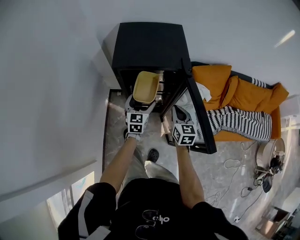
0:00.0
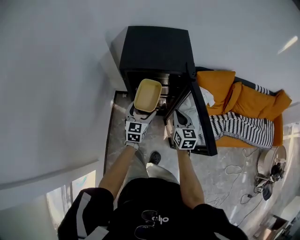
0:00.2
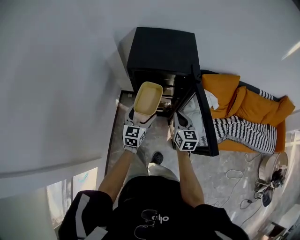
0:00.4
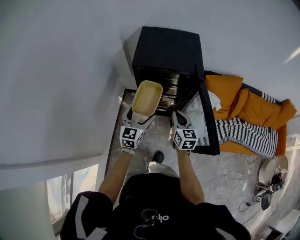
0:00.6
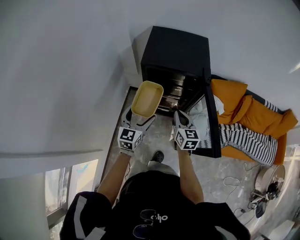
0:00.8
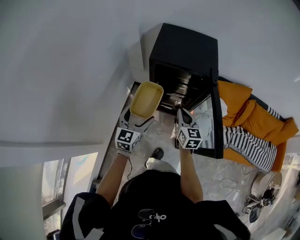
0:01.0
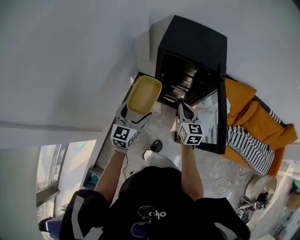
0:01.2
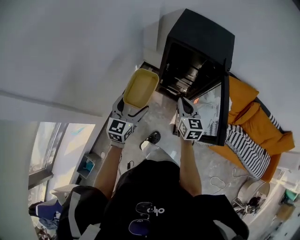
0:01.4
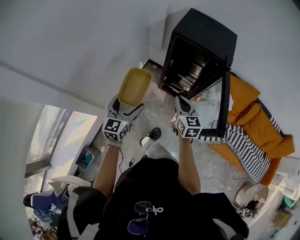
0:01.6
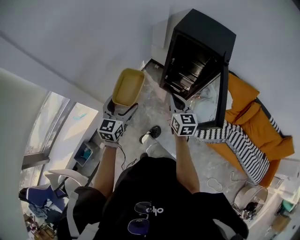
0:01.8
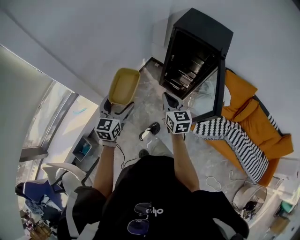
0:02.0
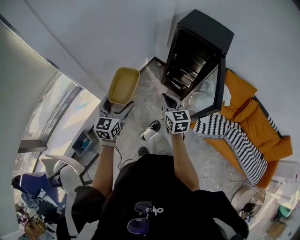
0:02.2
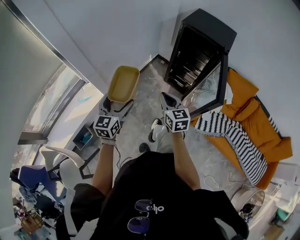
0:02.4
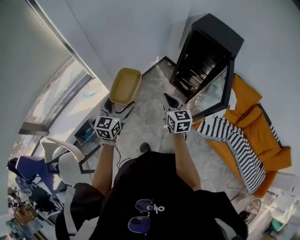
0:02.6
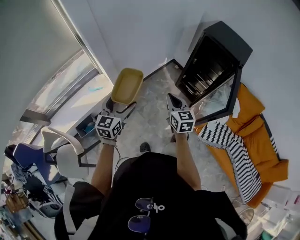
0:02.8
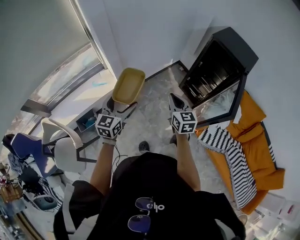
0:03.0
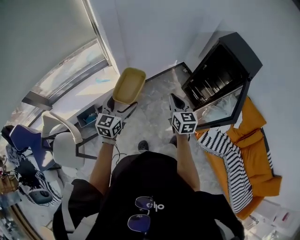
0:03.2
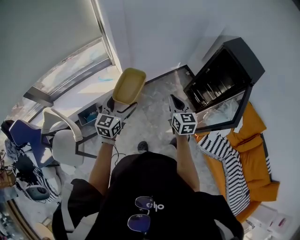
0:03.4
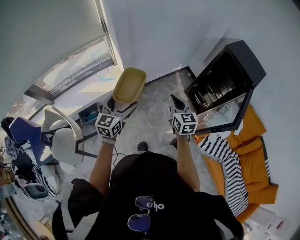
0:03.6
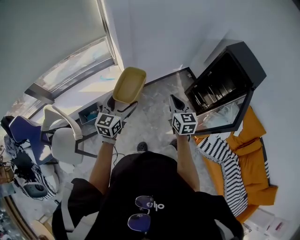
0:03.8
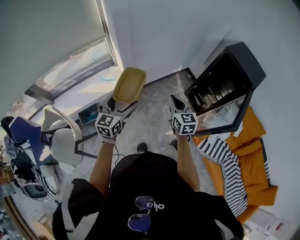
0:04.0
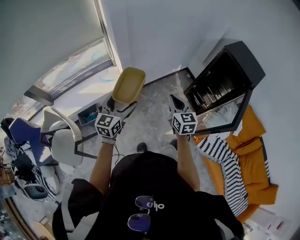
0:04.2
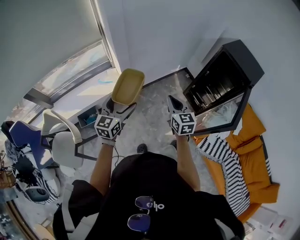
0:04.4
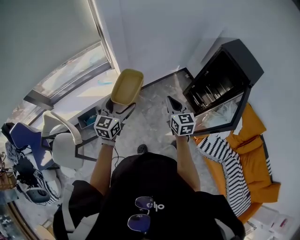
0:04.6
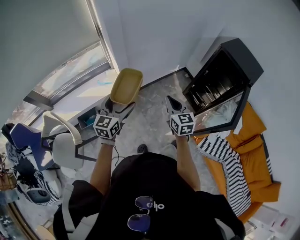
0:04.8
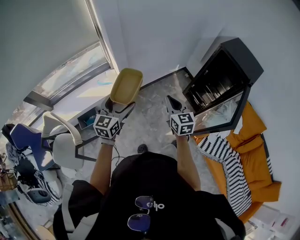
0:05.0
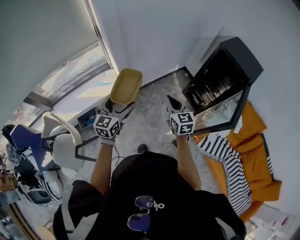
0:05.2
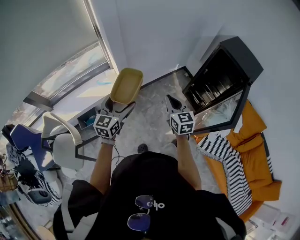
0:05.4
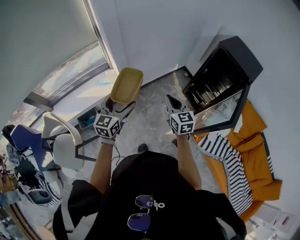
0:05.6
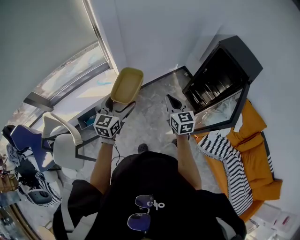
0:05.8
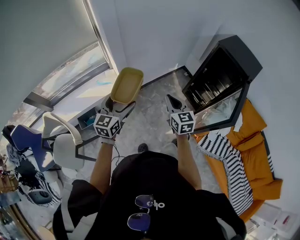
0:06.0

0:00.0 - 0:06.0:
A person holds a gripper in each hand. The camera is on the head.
0:00.0 - 0:01.6: The right gripper is displaced backward and to the left by some 20 cm, and turns by about 30 degrees. The left gripper is displaced backward and to the left by about 35 cm, and rotates some 20 degrees.
0:01.6 - 0:03.0: The two grippers go some 30 cm backward and to the left. The right gripper turns by about 30 degrees. The left gripper turns by some 20 degrees.
0:03.0 - 0:04.4: There are only small adjustments of the grippers.
0:04.4 - 0:06.0: Both grippers stay about where they are.

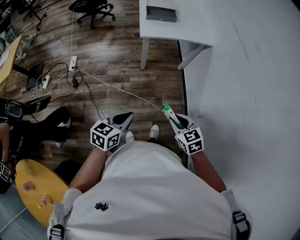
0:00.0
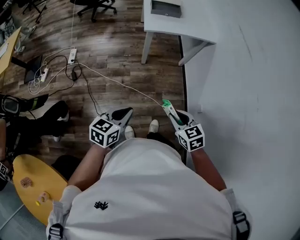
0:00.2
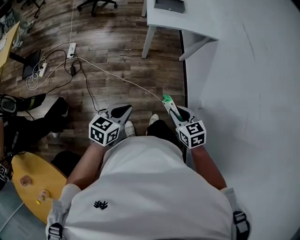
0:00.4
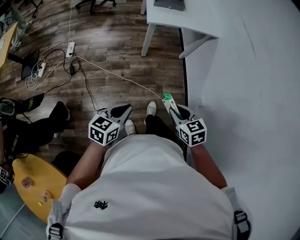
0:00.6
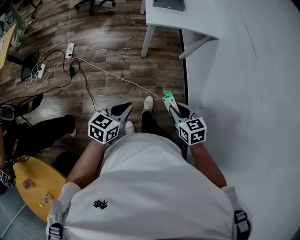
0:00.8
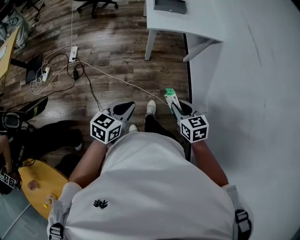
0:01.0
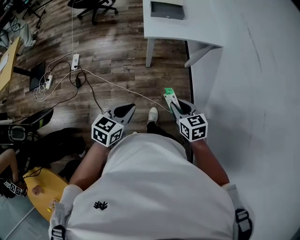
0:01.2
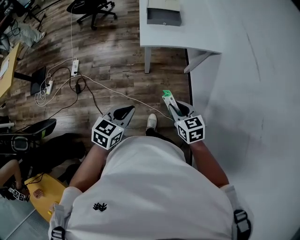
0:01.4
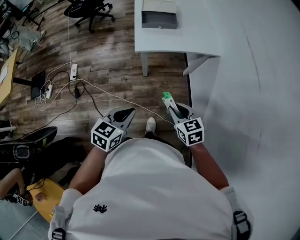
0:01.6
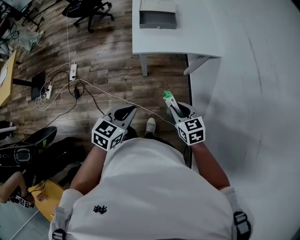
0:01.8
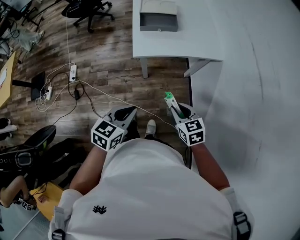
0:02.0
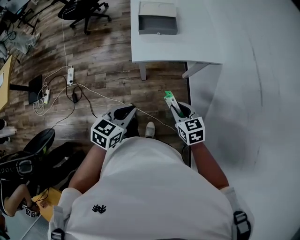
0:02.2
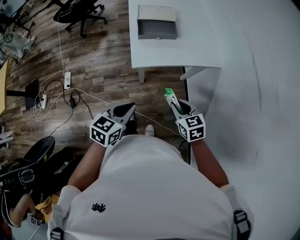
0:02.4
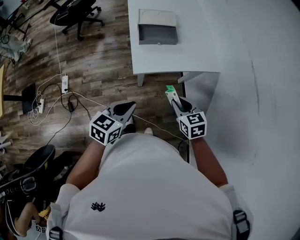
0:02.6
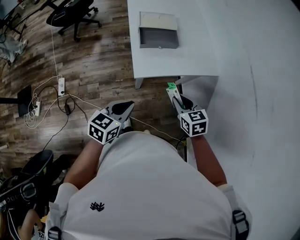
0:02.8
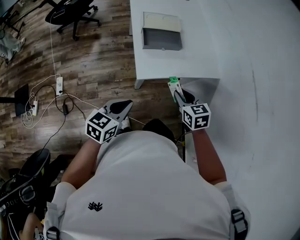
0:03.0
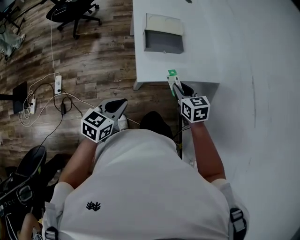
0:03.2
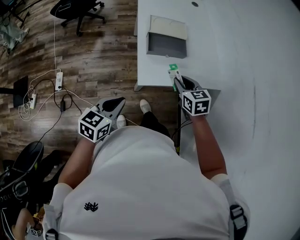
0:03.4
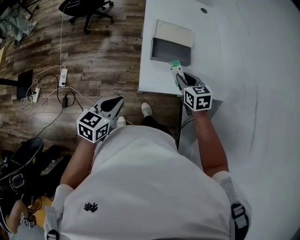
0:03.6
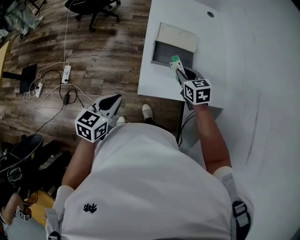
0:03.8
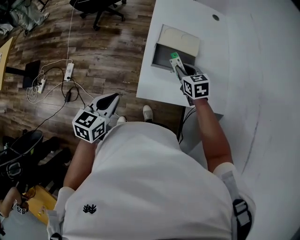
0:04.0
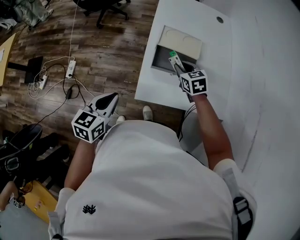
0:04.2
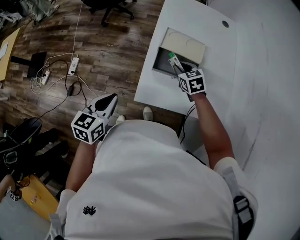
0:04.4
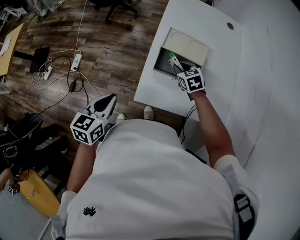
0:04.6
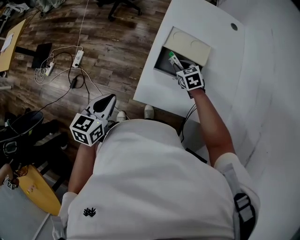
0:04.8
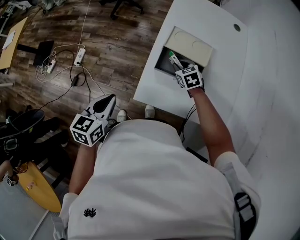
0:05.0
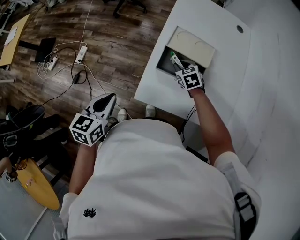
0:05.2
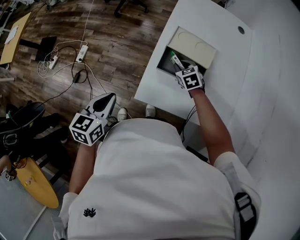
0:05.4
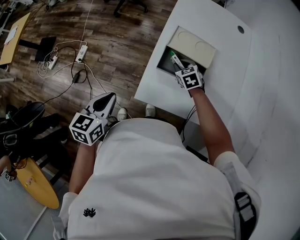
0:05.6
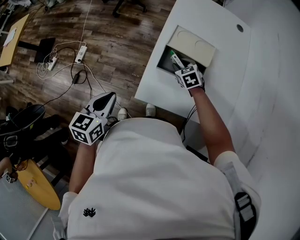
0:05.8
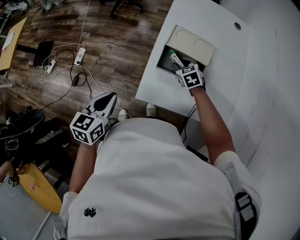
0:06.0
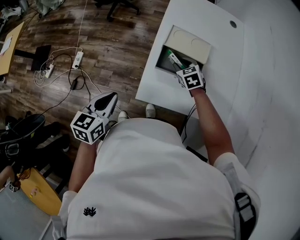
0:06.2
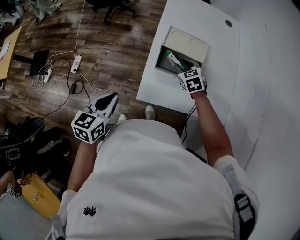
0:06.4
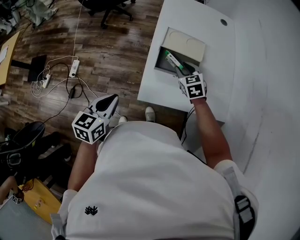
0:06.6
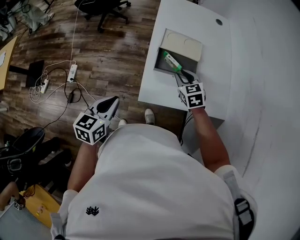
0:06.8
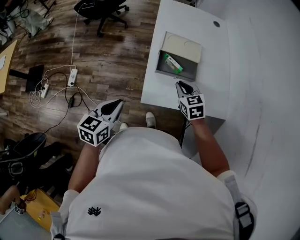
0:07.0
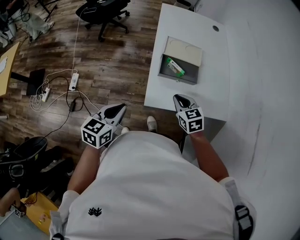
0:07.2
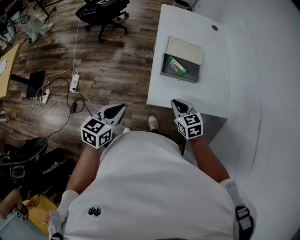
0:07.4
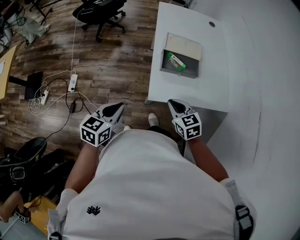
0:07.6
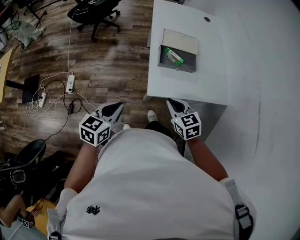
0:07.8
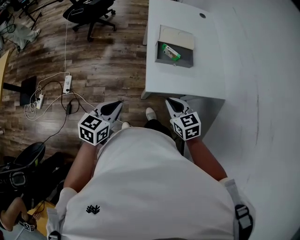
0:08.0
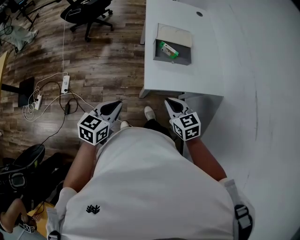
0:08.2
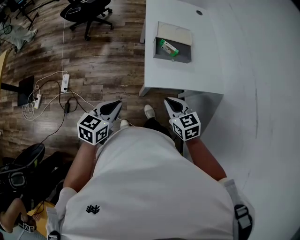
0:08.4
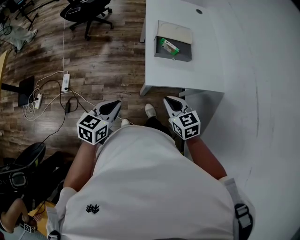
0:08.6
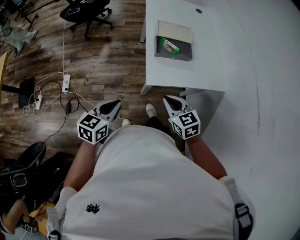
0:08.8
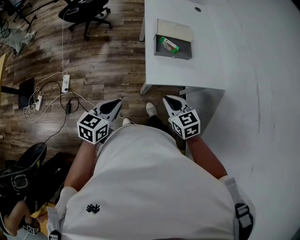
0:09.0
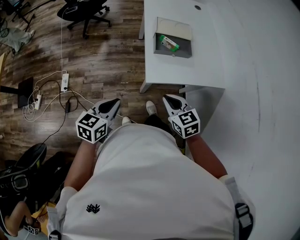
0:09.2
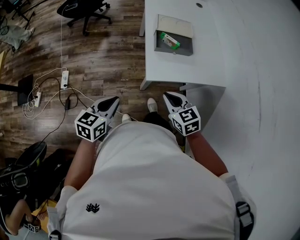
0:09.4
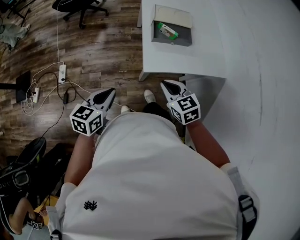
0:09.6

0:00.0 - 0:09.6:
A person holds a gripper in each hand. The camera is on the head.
0:00.0 - 0:01.6: The grippers both shift forward by about 20 cm.
0:01.6 - 0:03.2: The right gripper shifts roughly 30 cm forward; the left gripper travels forward and to the left by some 25 cm.
0:03.2 - 0:04.8: The right gripper changes place by about 30 cm, and changes its angle by approximately 30 degrees; the left gripper shifts by roughly 10 cm, and turns by approximately 40 degrees.
0:04.8 - 0:06.4: The grippers make only small movements.
0:06.4 - 0:08.0: The right gripper moves backward, some 30 cm, and closes its fingers. Meanwhile the left gripper travels backward by approximately 10 cm.
0:08.0 - 0:09.6: There are only small adjustments of the grippers.

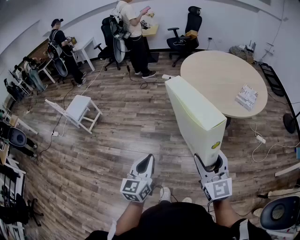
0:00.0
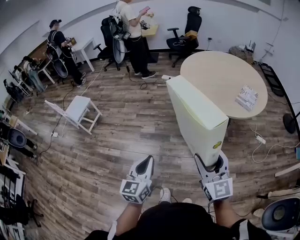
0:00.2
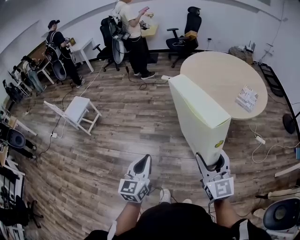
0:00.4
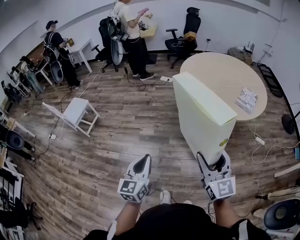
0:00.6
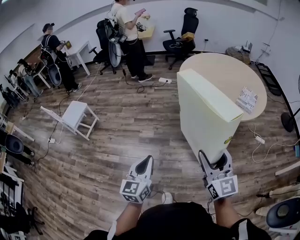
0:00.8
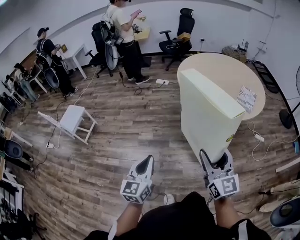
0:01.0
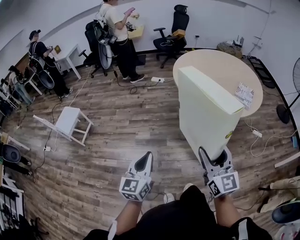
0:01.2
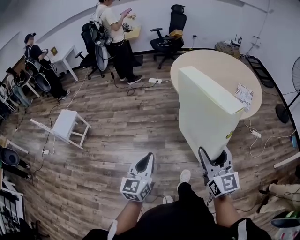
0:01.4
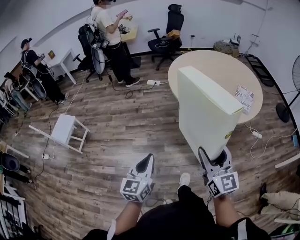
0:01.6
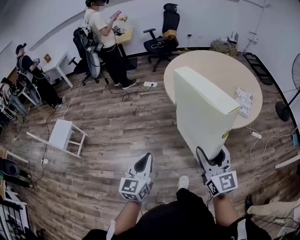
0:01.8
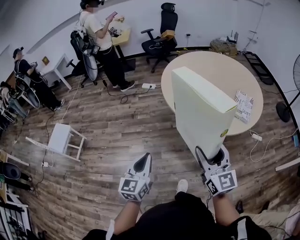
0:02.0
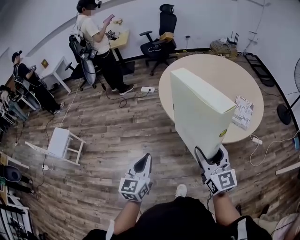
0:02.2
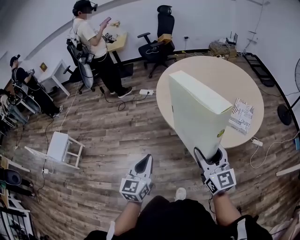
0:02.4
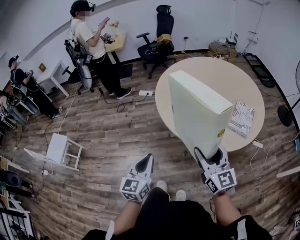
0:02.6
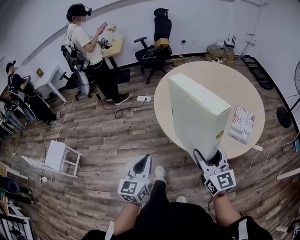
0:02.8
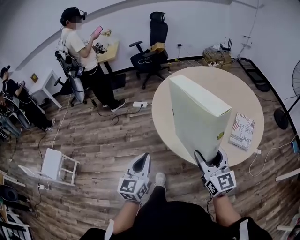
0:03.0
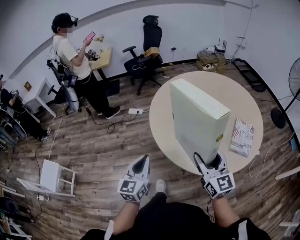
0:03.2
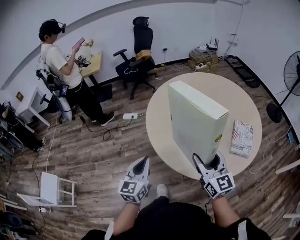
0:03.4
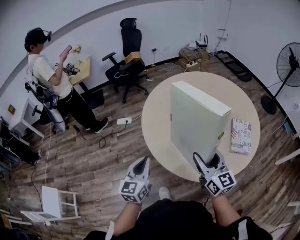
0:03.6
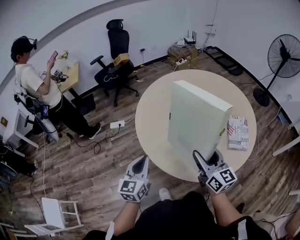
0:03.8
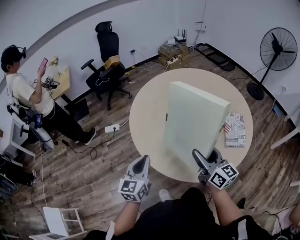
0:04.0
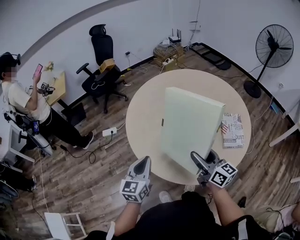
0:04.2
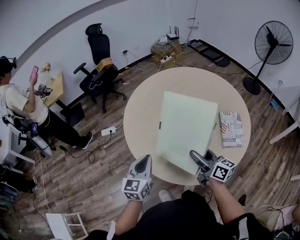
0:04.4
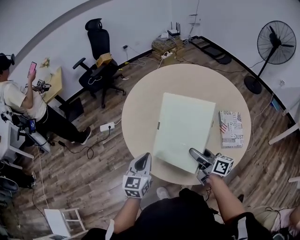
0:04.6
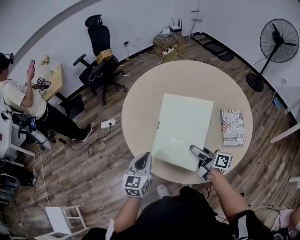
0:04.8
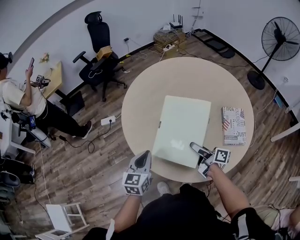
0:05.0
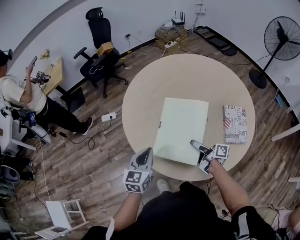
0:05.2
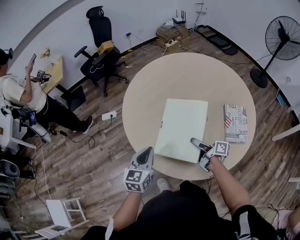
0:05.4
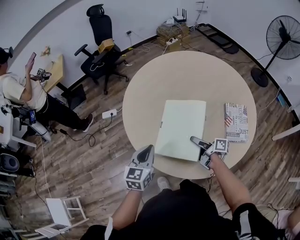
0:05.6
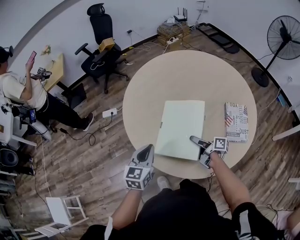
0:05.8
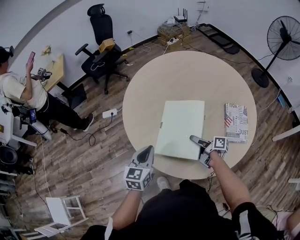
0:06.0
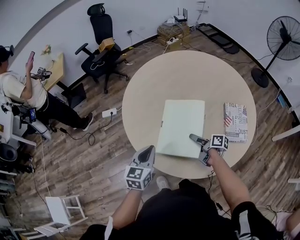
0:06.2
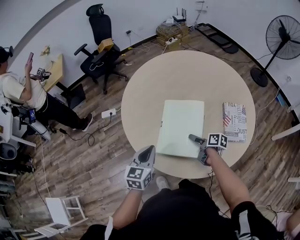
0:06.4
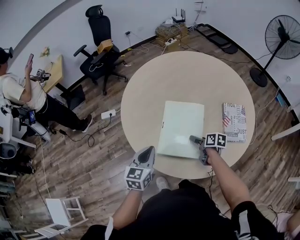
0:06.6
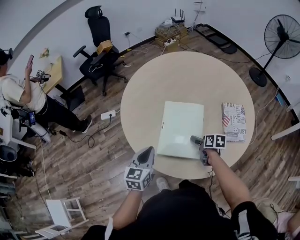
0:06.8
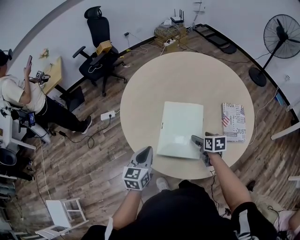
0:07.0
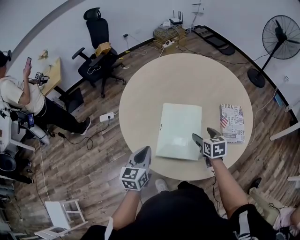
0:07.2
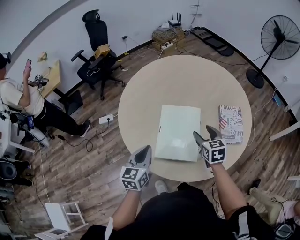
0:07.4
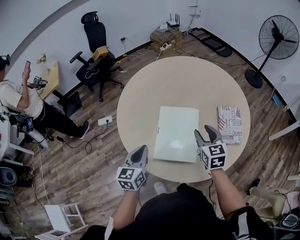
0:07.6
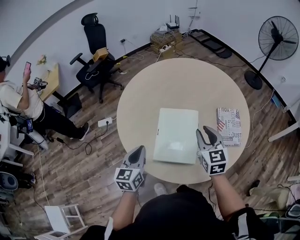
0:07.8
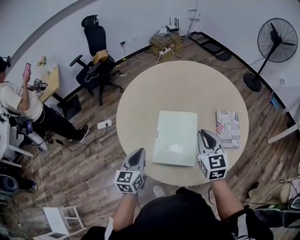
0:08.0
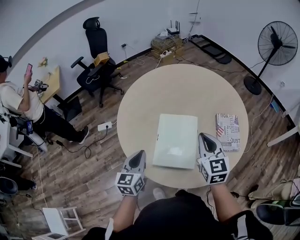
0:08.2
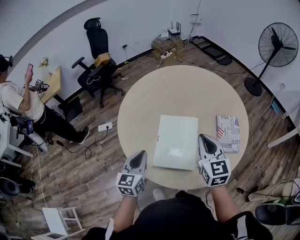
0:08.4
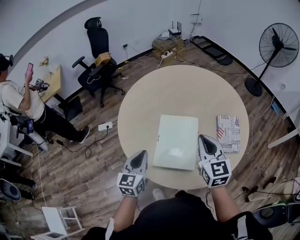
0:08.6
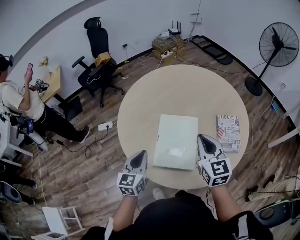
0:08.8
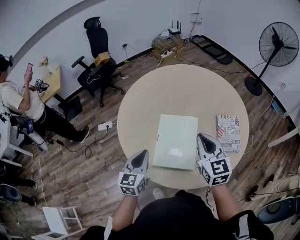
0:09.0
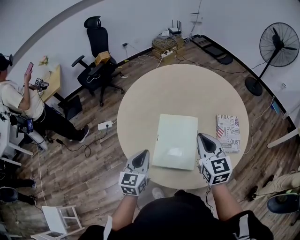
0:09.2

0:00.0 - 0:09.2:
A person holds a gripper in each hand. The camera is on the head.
0:00.0 - 0:01.6: The two grippers go some 15 cm forward.
0:01.6 - 0:03.0: The two grippers go about 35 cm forward.
0:03.0 - 0:04.6: The right gripper heads forward and downward, covering some 25 cm, and rolls clockwise, seen from behind, by about 50 degrees, while the left gripper is displaced forward by about 30 cm, and rotates approximately 30 degrees.
0:04.6 - 0:06.2: The right gripper heads downward, covering about 15 cm, and swivels approximately 30 degrees.
0:06.2 - 0:07.6: The right gripper goes some 15 cm upward, and rolls counterclockwise, seen from behind, by about 60 degrees.
0:07.6 - 0:09.2: The right gripper shifts roughly 10 cm upward, and closes its fingers.
